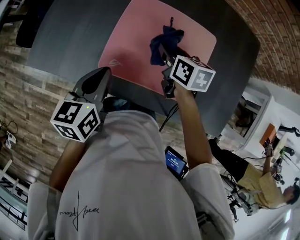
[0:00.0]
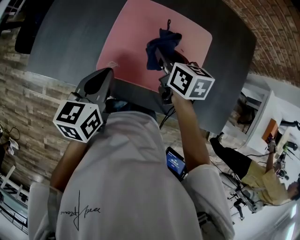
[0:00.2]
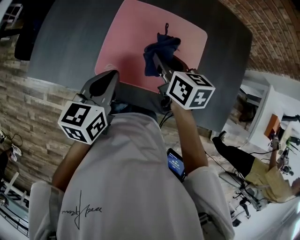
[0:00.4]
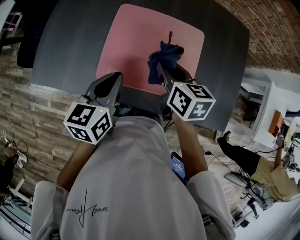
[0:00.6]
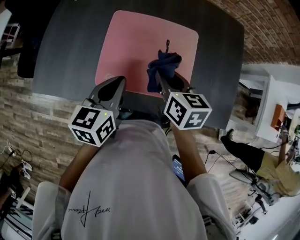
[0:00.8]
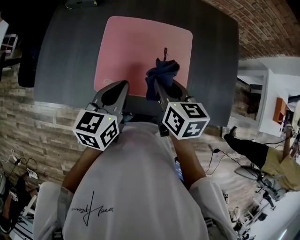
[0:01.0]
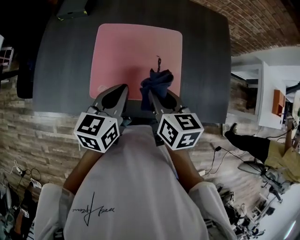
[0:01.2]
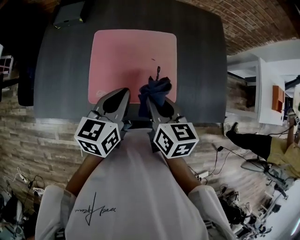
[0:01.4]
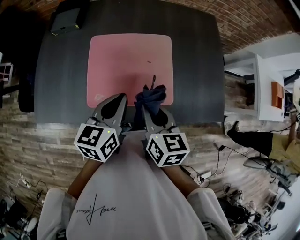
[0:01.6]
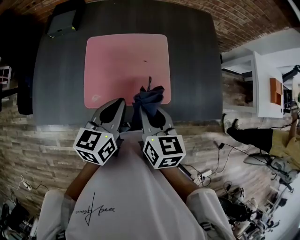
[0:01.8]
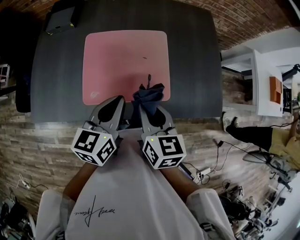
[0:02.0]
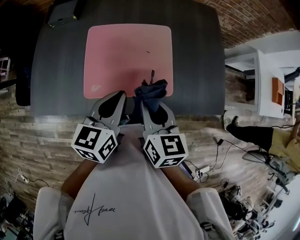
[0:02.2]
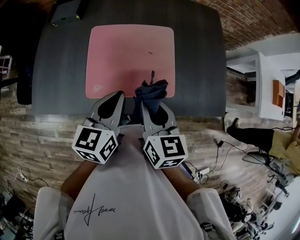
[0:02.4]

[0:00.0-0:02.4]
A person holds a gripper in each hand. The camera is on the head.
0:00.0 to 0:01.2: The right gripper is displaced backward, upward and to the right by roughly 20 cm; the left gripper goes about 15 cm to the right.
0:01.2 to 0:02.4: The left gripper ends up approximately 5 cm from where it was; the right gripper goes approximately 5 cm backward.

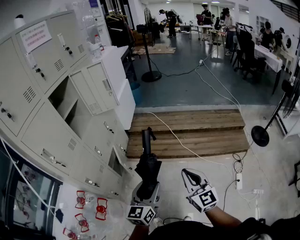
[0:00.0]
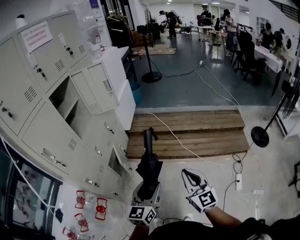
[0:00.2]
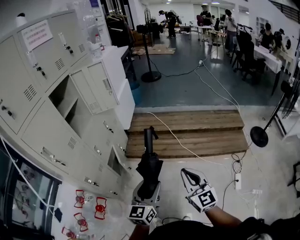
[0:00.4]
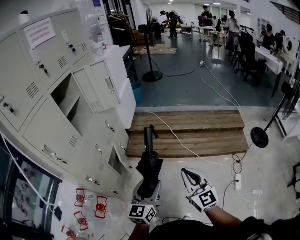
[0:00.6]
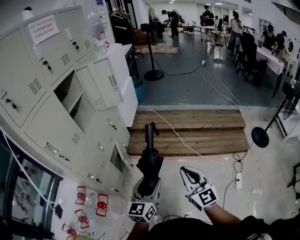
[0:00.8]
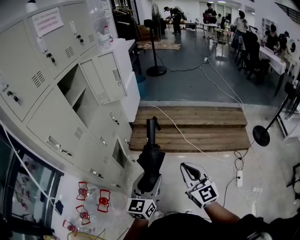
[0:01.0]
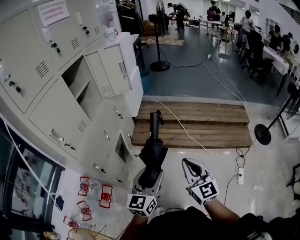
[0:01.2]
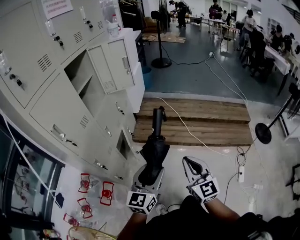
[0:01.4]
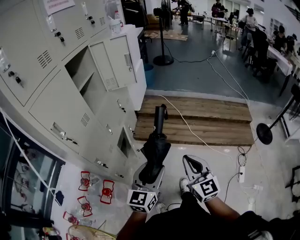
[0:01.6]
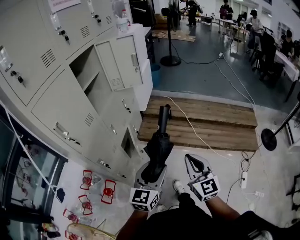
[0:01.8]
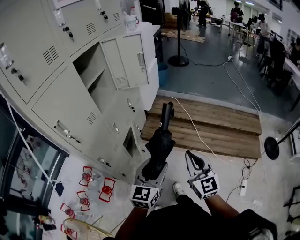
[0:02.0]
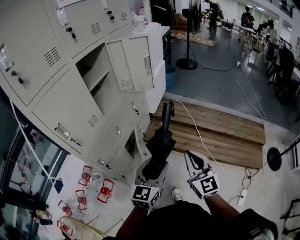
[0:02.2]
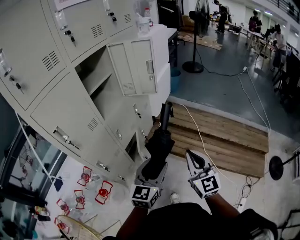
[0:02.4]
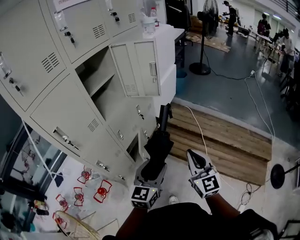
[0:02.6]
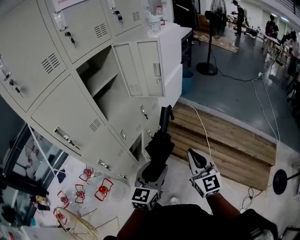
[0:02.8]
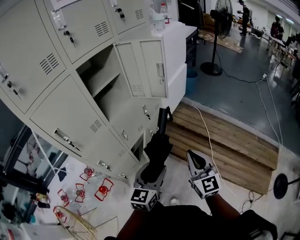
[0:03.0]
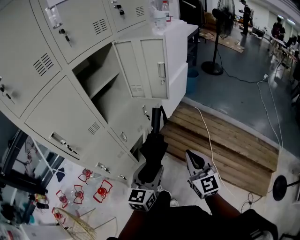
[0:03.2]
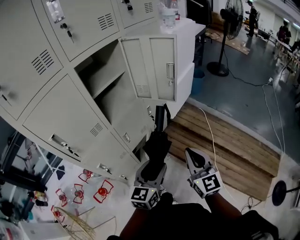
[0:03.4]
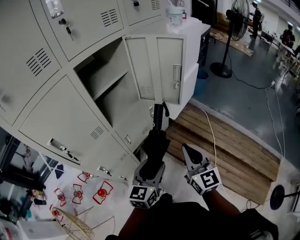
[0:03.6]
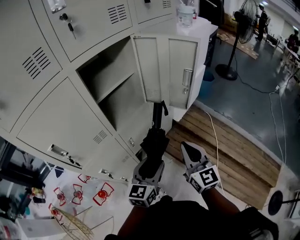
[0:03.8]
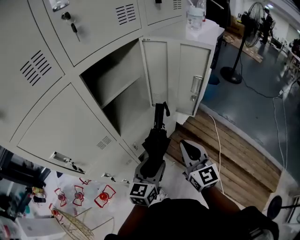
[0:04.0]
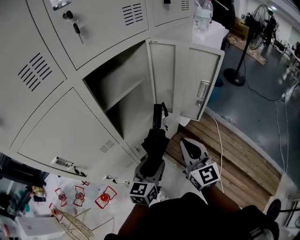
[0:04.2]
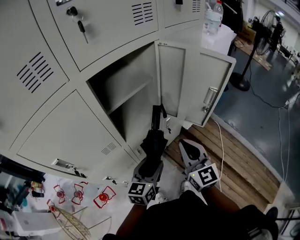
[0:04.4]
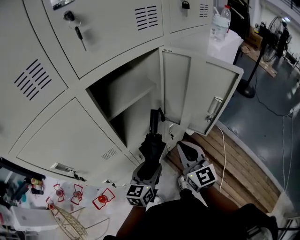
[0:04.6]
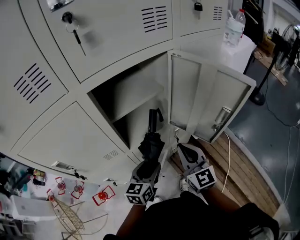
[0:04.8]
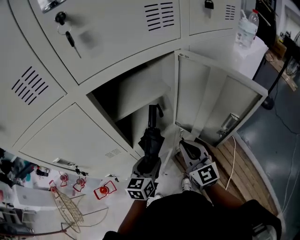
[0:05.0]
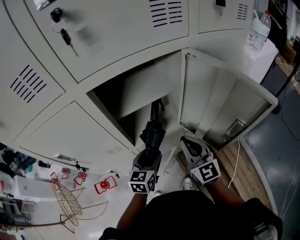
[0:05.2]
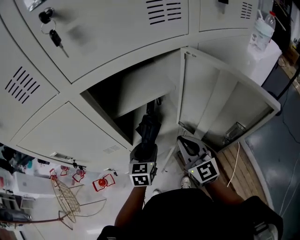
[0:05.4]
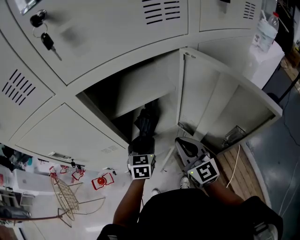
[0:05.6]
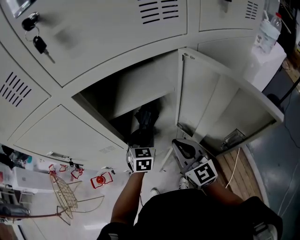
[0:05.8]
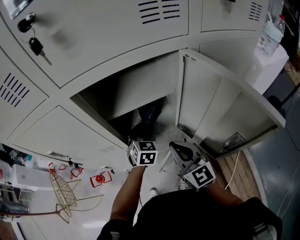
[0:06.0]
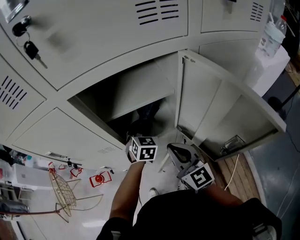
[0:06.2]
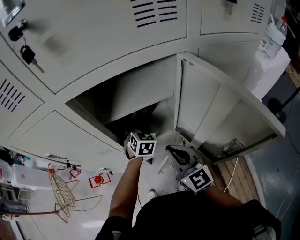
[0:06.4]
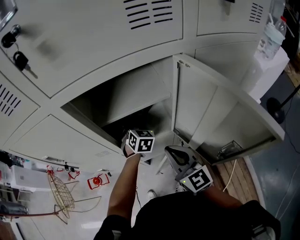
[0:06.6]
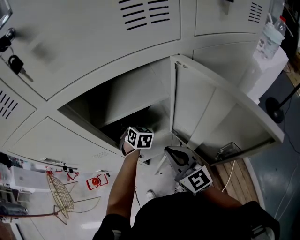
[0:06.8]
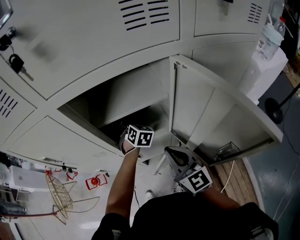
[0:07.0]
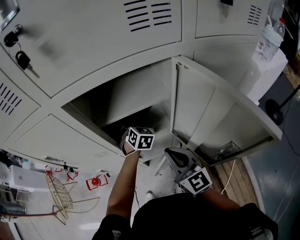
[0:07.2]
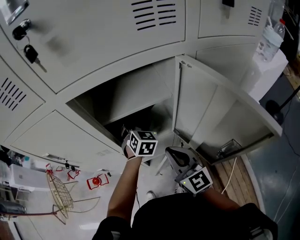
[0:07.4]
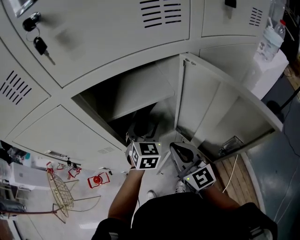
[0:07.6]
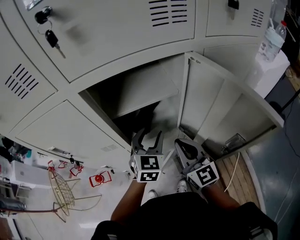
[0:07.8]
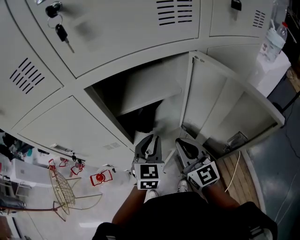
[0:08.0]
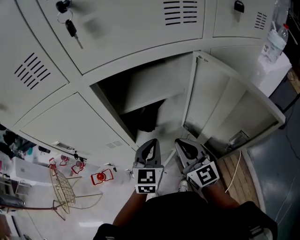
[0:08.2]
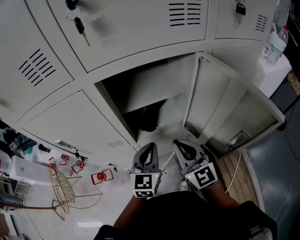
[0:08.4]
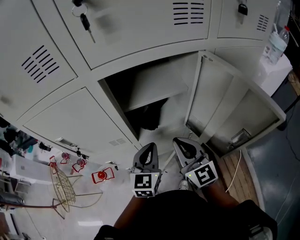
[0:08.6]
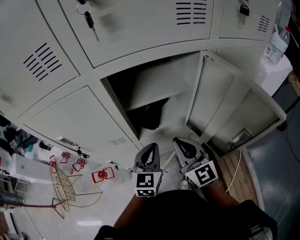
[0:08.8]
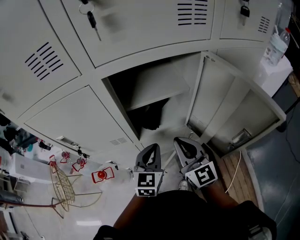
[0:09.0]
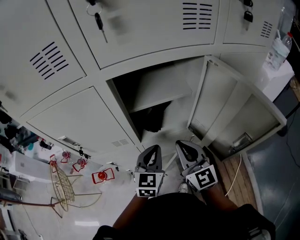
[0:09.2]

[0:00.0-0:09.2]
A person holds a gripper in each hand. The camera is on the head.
0:00.0 to 0:01.6: Both grippers move to the left, about 10 cm.
0:01.6 to 0:03.0: The grippers both shift forward by approximately 25 cm. The left gripper swivels some 20 degrees.
0:03.0 to 0:04.6: Both grippers move forward and to the left, approximately 35 cm. The right gripper changes its angle by roughly 20 degrees, while the left gripper swivels approximately 20 degrees.
0:04.6 to 0:06.2: The left gripper shifts by approximately 25 cm, and changes its angle by some 50 degrees. The right gripper changes place by about 10 cm, and swivels some 30 degrees.
0:06.2 to 0:07.6: The left gripper is displaced upward by approximately 5 cm.
0:07.6 to 0:09.2: The left gripper goes roughly 15 cm backward and to the left, and closes its fingers.

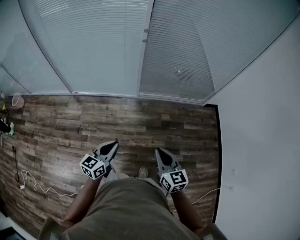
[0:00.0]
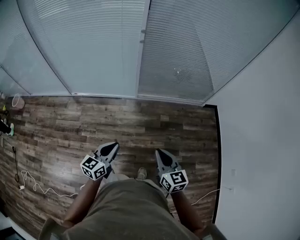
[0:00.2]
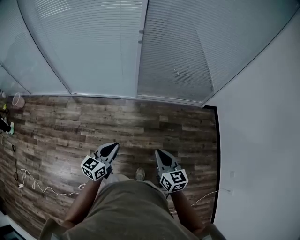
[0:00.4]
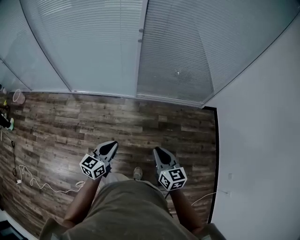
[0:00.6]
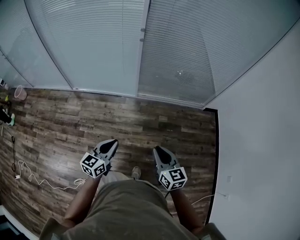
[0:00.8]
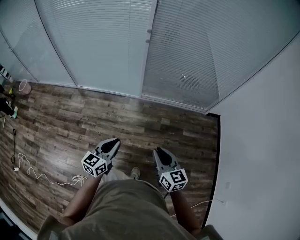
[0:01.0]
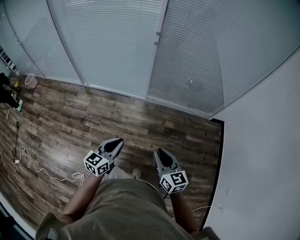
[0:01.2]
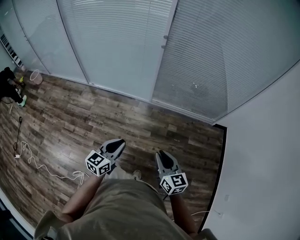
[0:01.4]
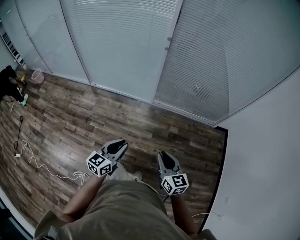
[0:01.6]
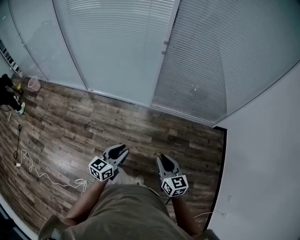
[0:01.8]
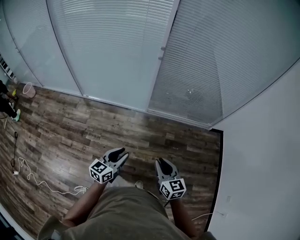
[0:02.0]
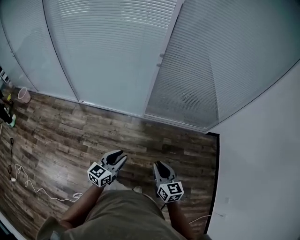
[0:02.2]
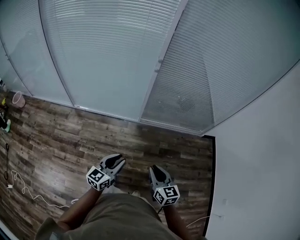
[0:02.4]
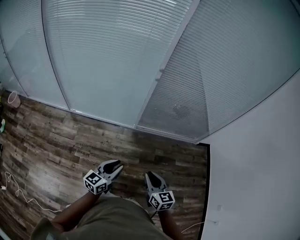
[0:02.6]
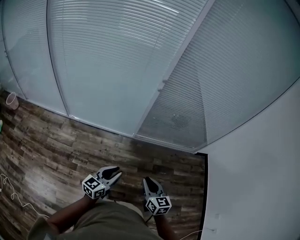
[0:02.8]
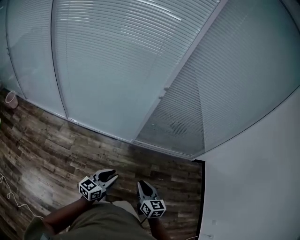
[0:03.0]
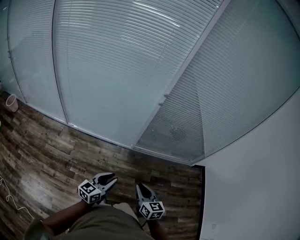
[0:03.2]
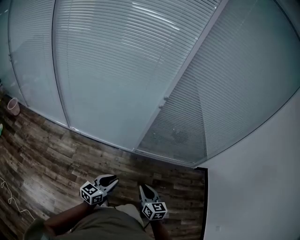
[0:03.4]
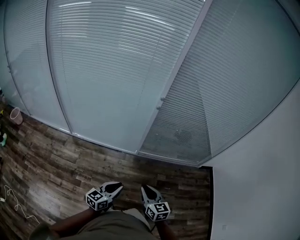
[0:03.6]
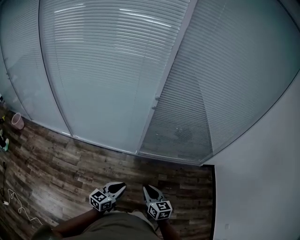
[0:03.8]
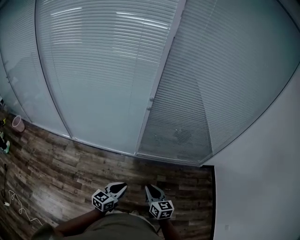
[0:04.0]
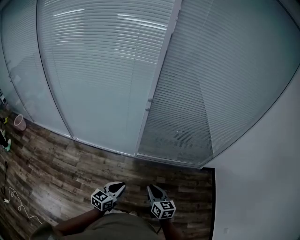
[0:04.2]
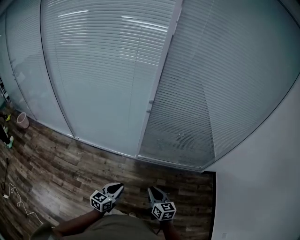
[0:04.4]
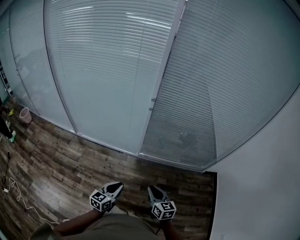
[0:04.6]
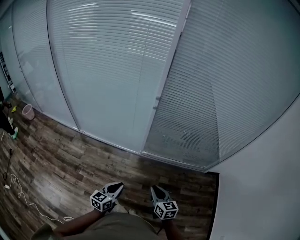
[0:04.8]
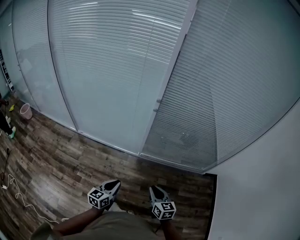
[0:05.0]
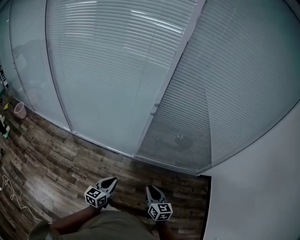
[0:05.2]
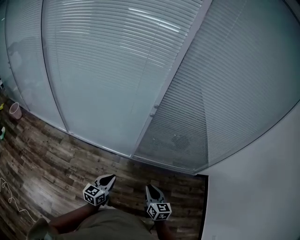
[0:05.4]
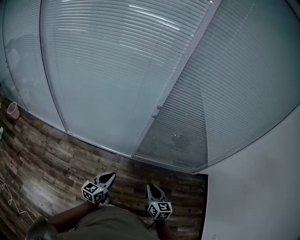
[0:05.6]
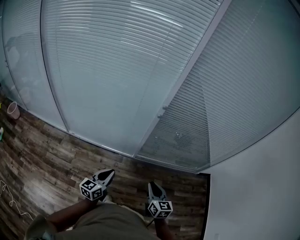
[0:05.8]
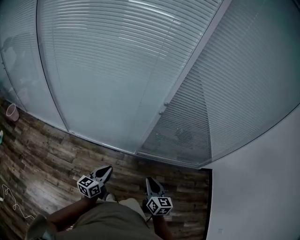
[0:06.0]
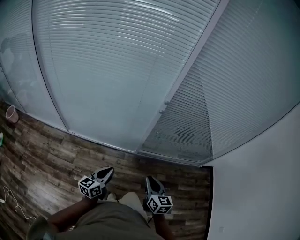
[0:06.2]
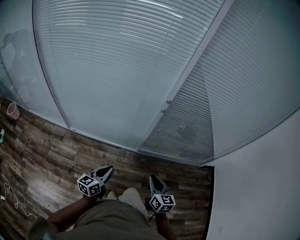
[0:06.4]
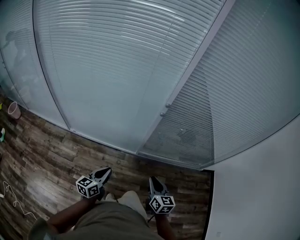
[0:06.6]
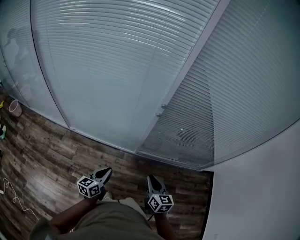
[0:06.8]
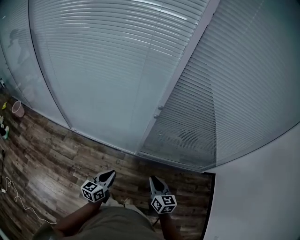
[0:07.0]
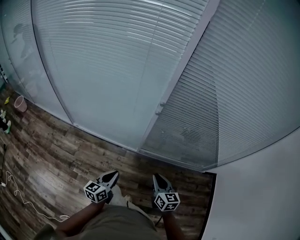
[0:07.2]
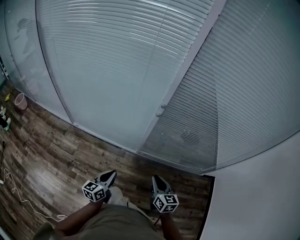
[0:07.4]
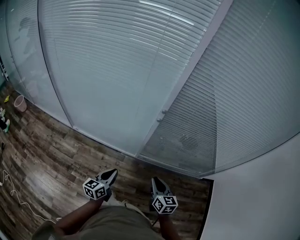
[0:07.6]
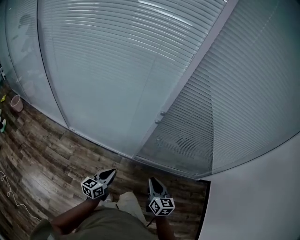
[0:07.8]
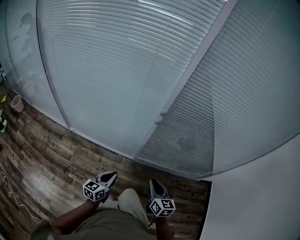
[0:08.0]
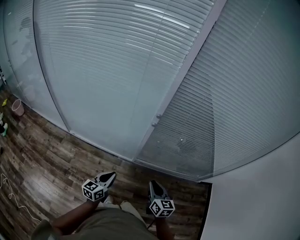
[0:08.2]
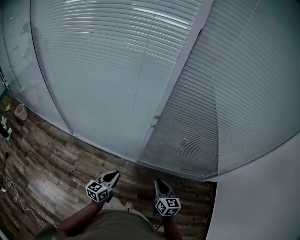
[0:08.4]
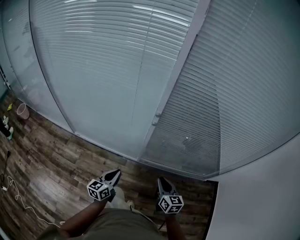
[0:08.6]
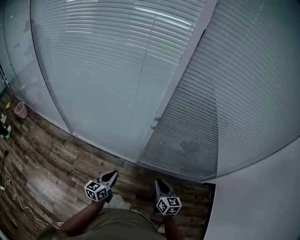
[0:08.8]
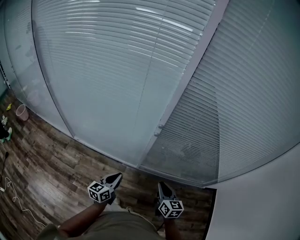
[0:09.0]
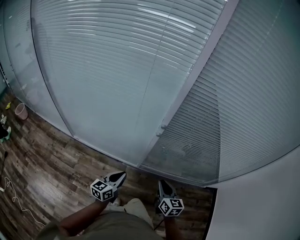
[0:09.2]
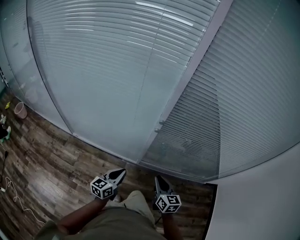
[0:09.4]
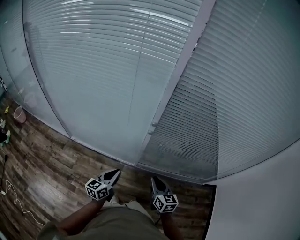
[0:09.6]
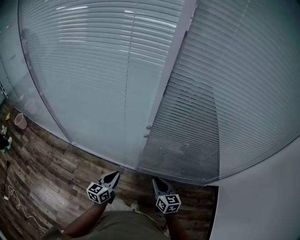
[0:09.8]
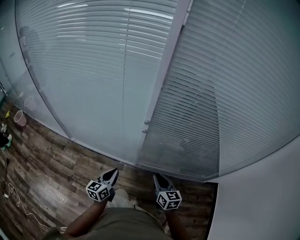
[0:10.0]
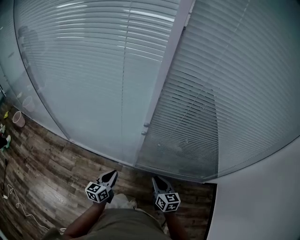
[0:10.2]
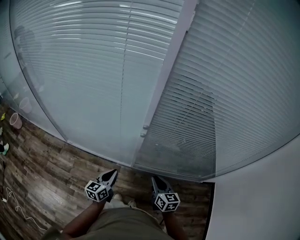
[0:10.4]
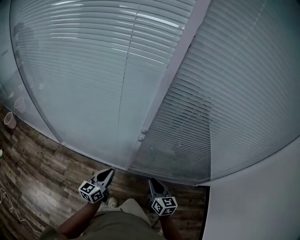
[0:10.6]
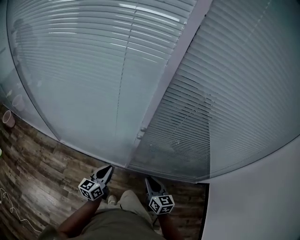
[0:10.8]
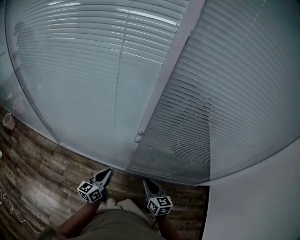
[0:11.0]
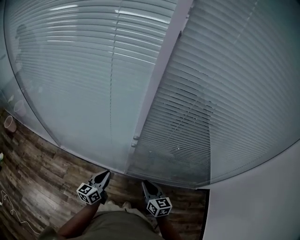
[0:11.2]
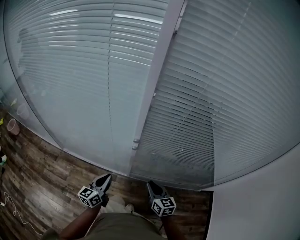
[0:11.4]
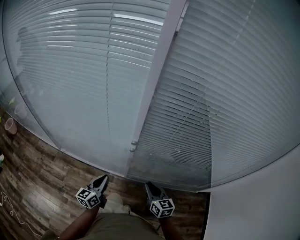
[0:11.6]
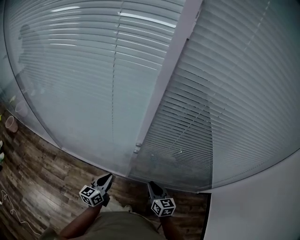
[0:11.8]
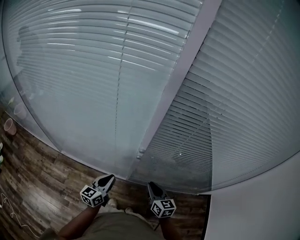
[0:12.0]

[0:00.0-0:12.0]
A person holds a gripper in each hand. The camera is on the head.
0:00.0 to 0:01.6: Both grippers move to the right, some 5 cm.
0:01.6 to 0:03.0: Both grippers move to the left and forward, roughly 25 cm.
0:03.0 to 0:04.4: The grippers both shift to the right and forward by some 20 cm.
0:04.4 to 0:06.0: The two grippers go some 20 cm to the left and forward.
0:06.0 to 0:07.6: The grippers both shift to the right and forward by about 15 cm.
0:07.6 to 0:09.0: Both grippers travel together forward, some 5 cm.
0:09.0 to 0:10.4: The two grippers go approximately 10 cm forward.
0:10.4 to 0:12.0: Both grippers move forward, roughly 5 cm.
